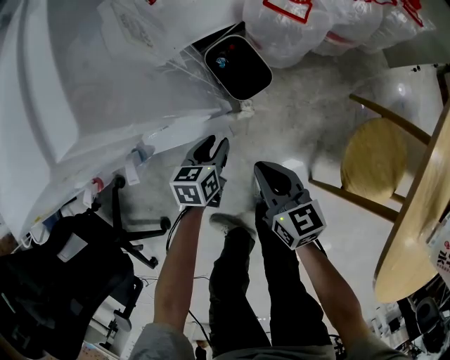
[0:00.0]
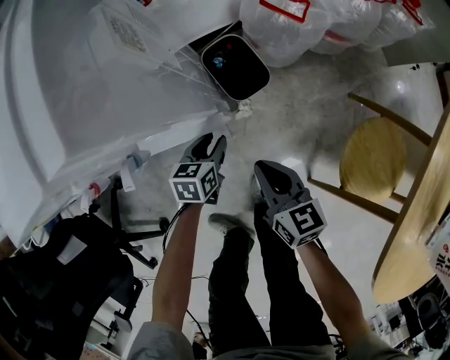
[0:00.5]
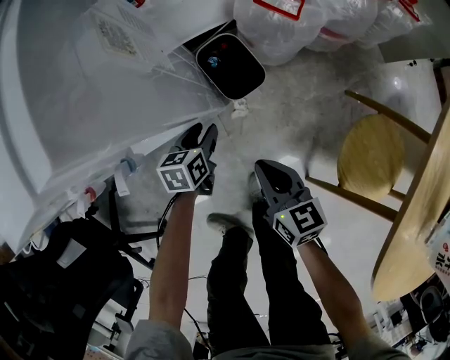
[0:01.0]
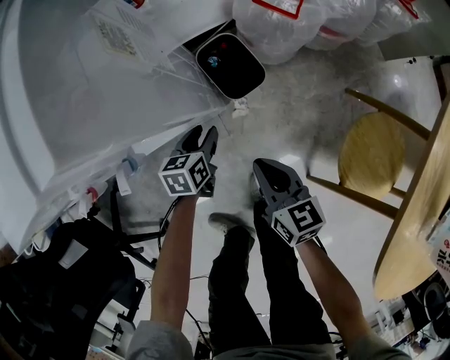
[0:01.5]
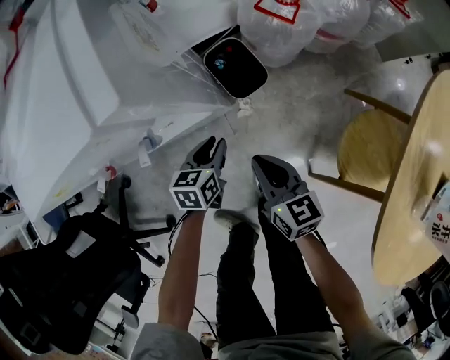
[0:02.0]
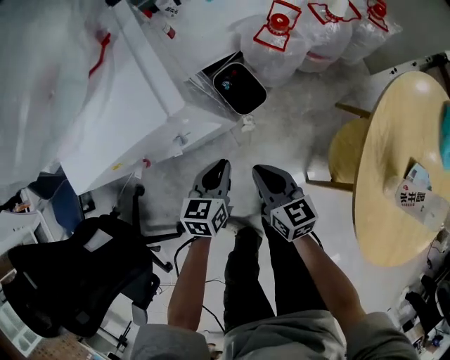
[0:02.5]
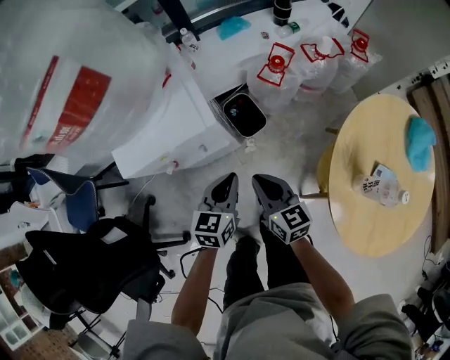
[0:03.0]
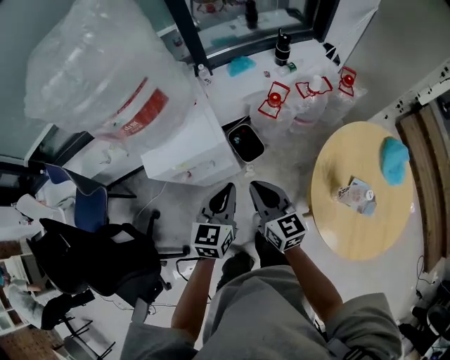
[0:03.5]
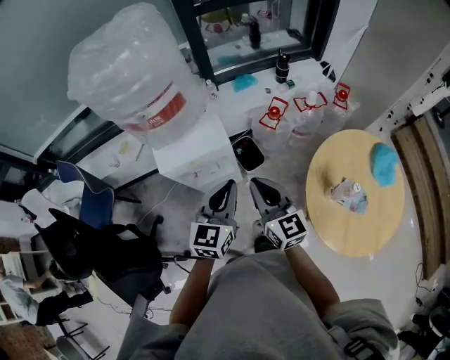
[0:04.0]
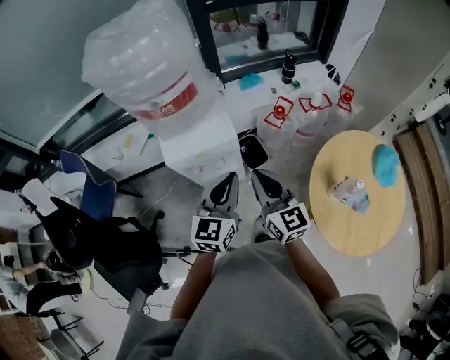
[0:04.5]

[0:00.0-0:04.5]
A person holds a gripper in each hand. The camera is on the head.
0:00.0 to 0:02.0: The left gripper heads upward, covering approximately 5 cm.
0:02.0 to 0:04.5: Both grippers travel together upward, roughly 50 cm. The right gripper rotates about 30 degrees. The left gripper tilts its fingers approximately 30 degrees upward, and closes up.

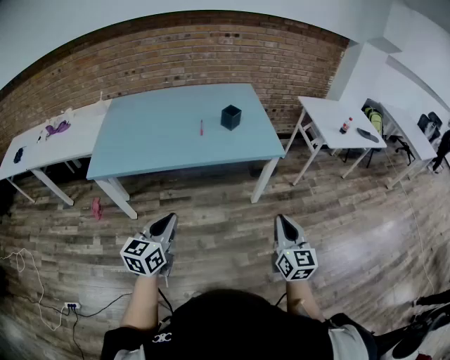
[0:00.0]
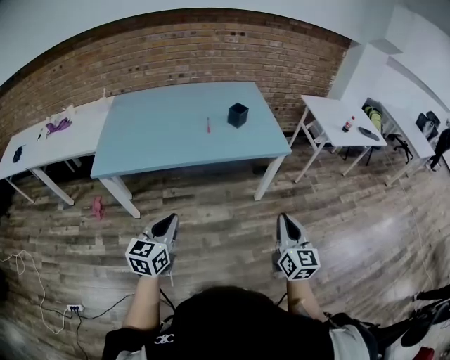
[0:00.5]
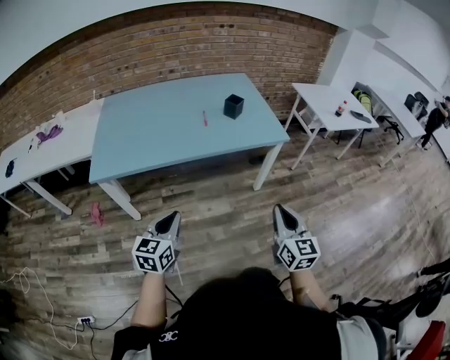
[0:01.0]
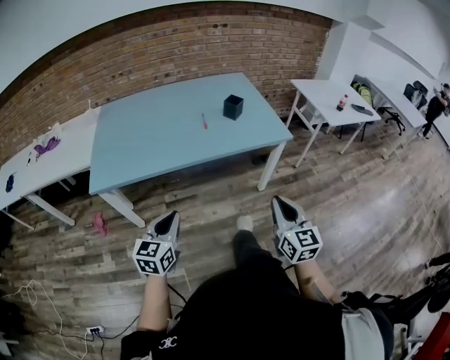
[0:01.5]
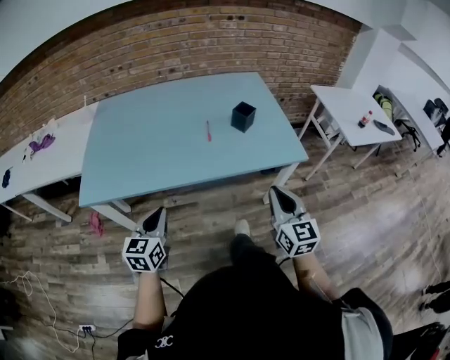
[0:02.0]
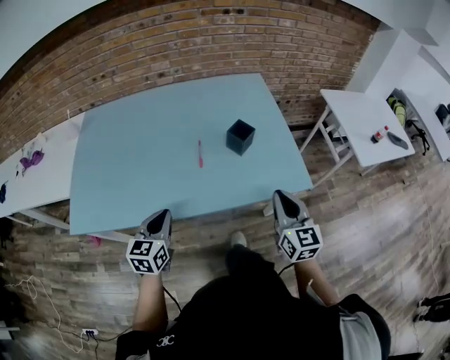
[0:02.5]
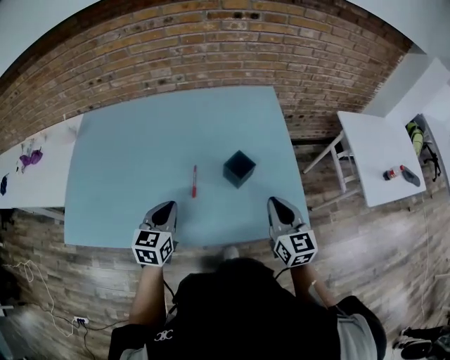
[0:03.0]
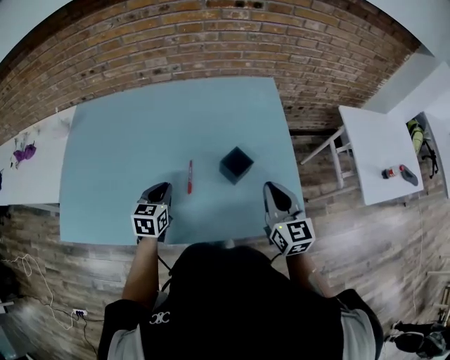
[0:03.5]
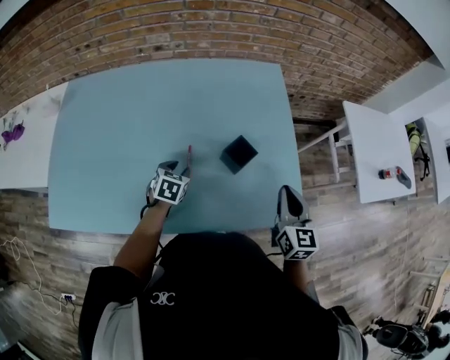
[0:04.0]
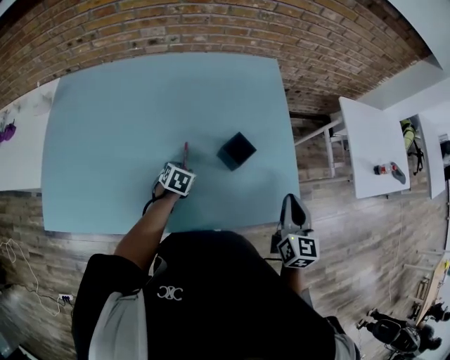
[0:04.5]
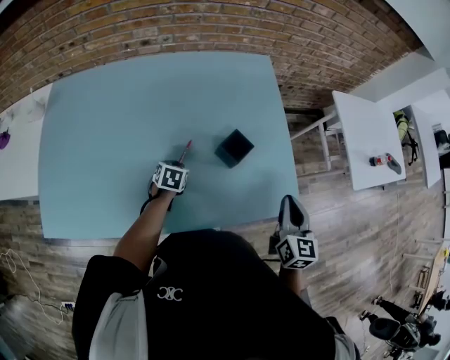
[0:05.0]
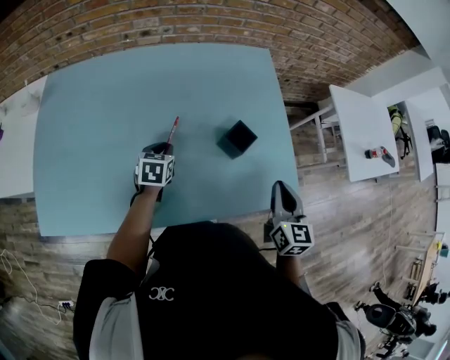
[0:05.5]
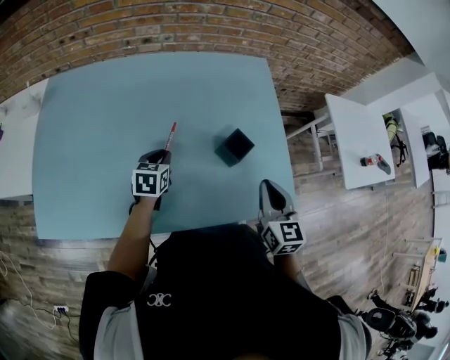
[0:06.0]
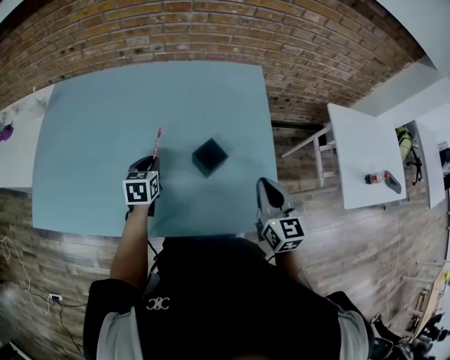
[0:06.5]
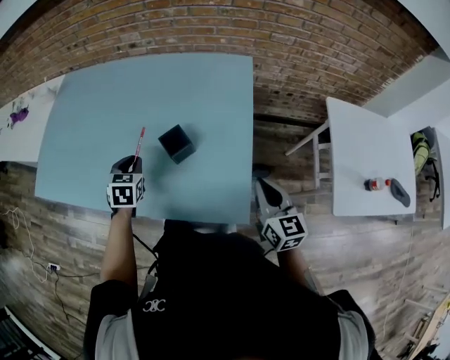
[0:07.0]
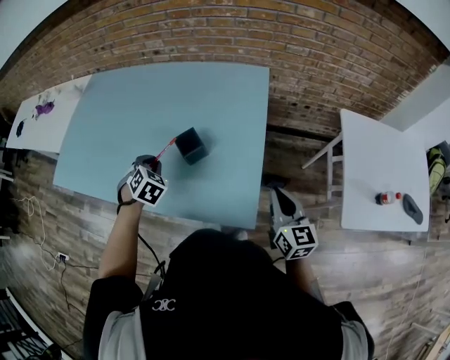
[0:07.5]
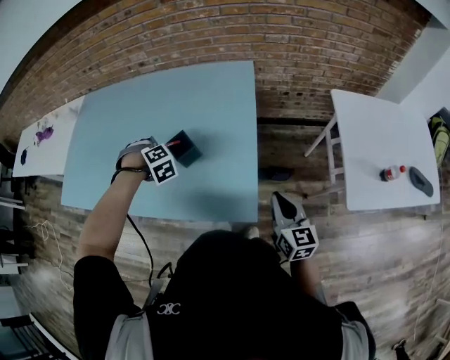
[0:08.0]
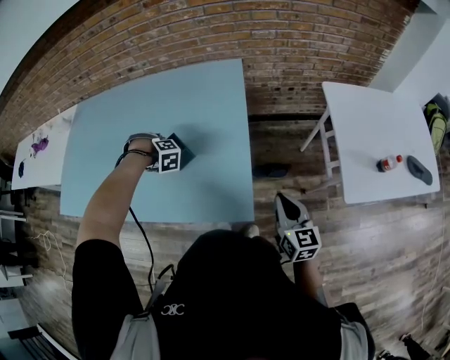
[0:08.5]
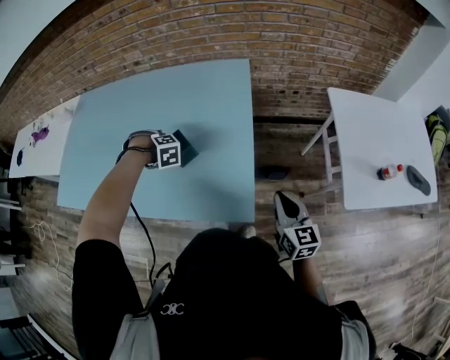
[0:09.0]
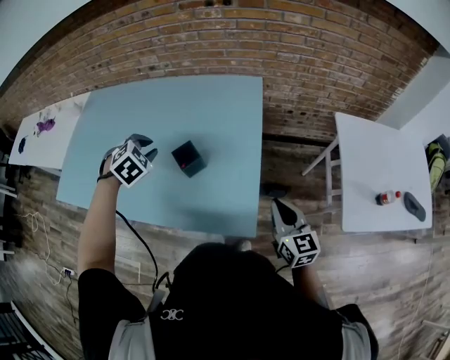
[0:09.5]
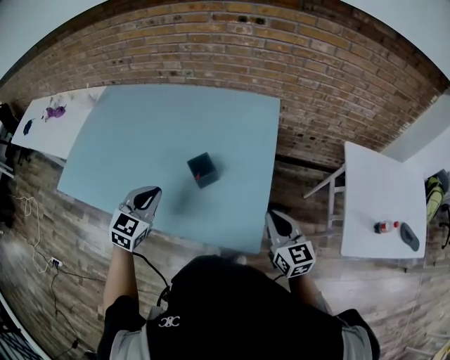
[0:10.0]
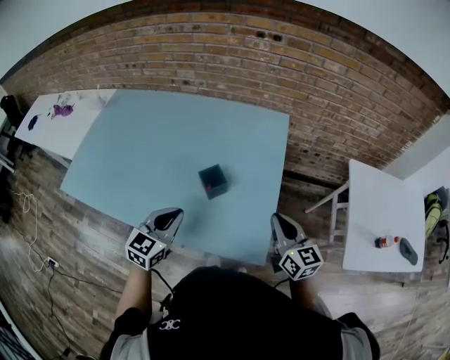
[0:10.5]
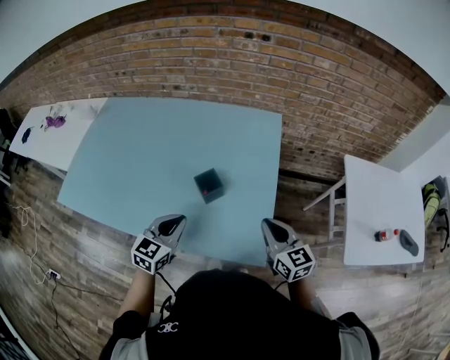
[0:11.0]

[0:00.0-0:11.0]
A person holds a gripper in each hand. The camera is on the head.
0:00.0 to 0:02.0: The left gripper shifts some 25 cm forward, to the left and downward; the right gripper goes some 25 cm forward and to the left.
0:02.0 to 0:03.5: Both grippers travel together forward, some 35 cm.
0:03.5 to 0:05.5: The left gripper shifts some 10 cm forward and downward, and opens and closes again.
0:05.5 to 0:07.5: The left gripper ends up about 15 cm from where it was, and rotates approximately 40 degrees. Meanwhile the right gripper shifts by about 20 cm, and turns by some 30 degrees.
0:07.5 to 0:09.0: The right gripper moves backward, about 5 cm; the left gripper goes roughly 5 cm to the right, rolls clockwise, seen from behind, by some 50 degrees, and opens up.
0:09.0 to 0:11.0: The left gripper changes place by about 20 cm, tips its fingers upward by approximately 40 degrees, and closes. The right gripper changes place by some 15 cm.

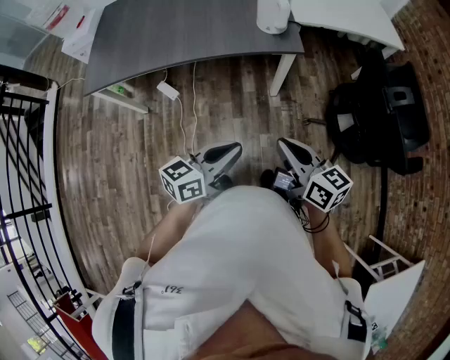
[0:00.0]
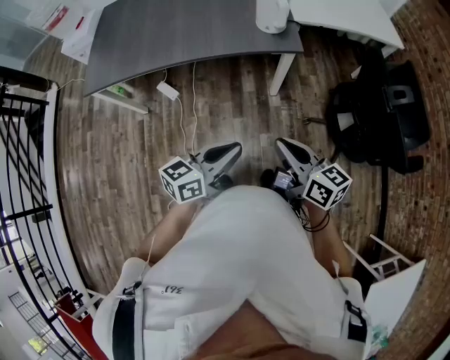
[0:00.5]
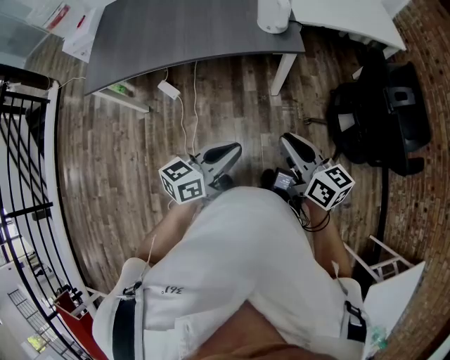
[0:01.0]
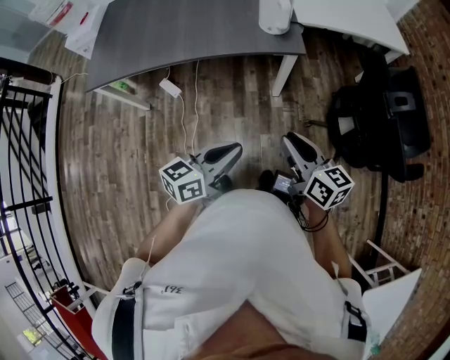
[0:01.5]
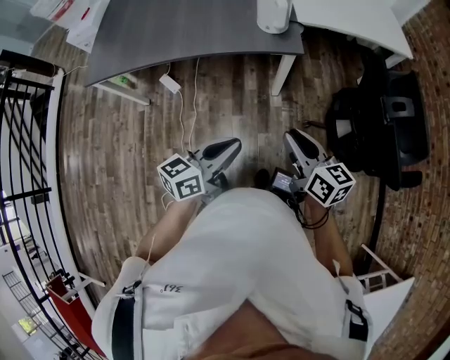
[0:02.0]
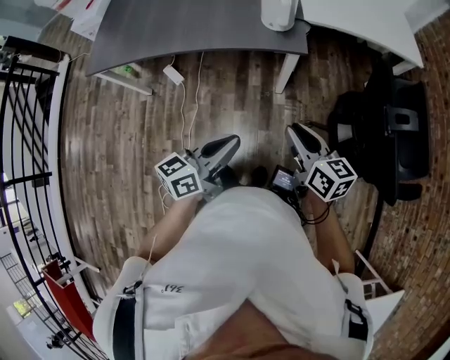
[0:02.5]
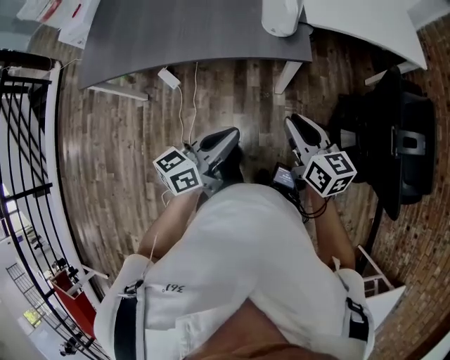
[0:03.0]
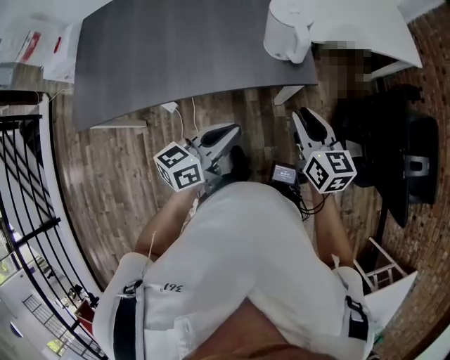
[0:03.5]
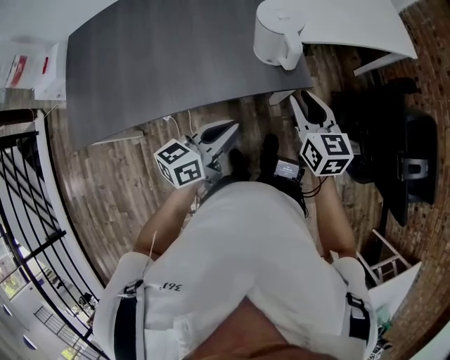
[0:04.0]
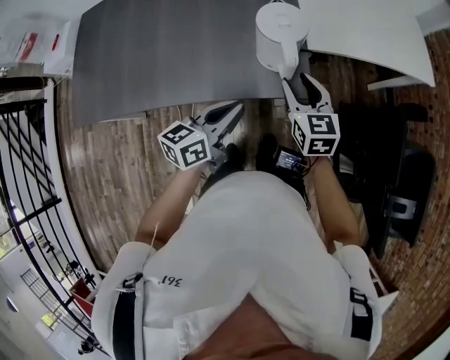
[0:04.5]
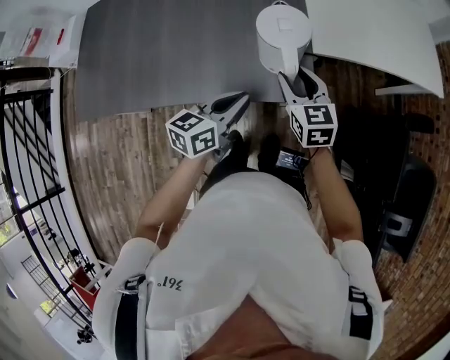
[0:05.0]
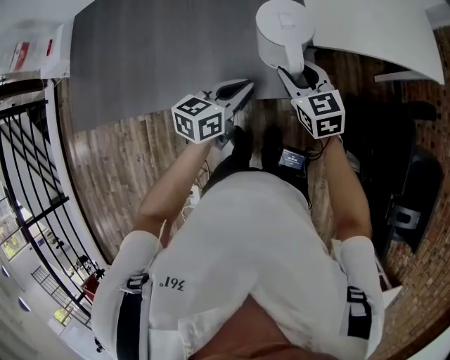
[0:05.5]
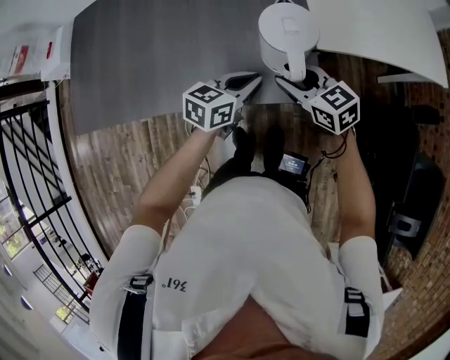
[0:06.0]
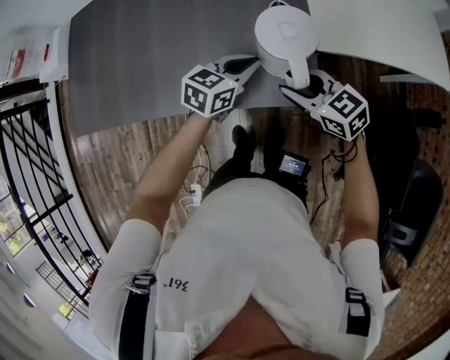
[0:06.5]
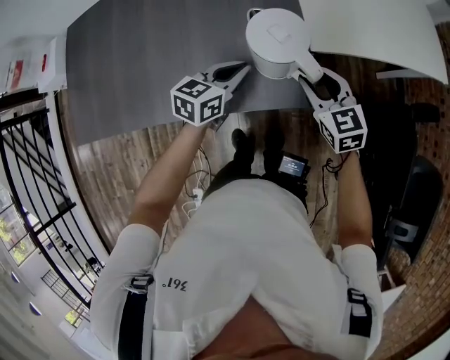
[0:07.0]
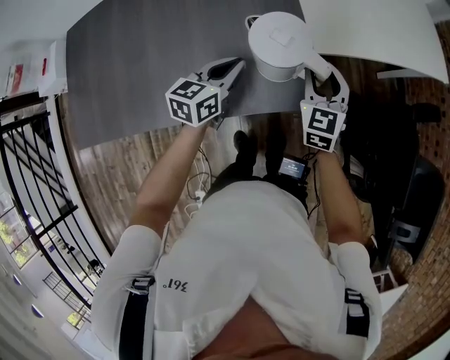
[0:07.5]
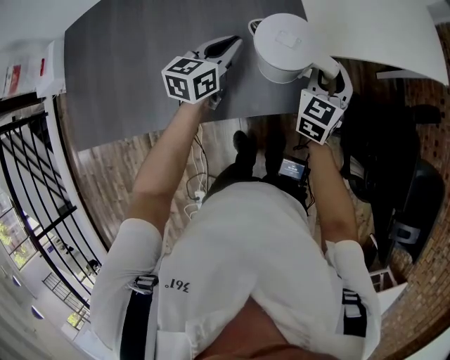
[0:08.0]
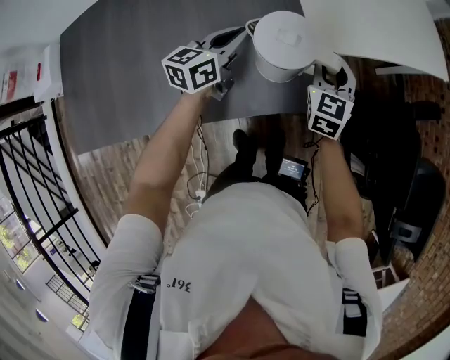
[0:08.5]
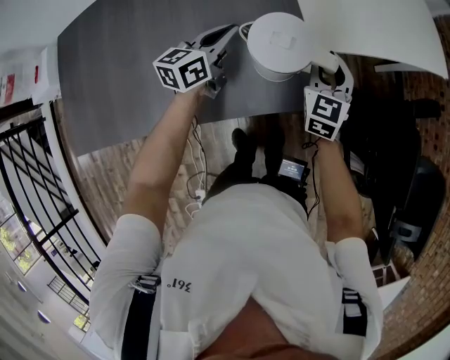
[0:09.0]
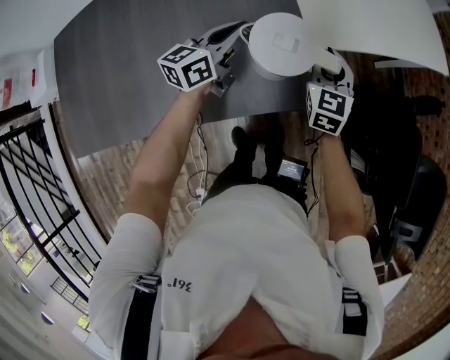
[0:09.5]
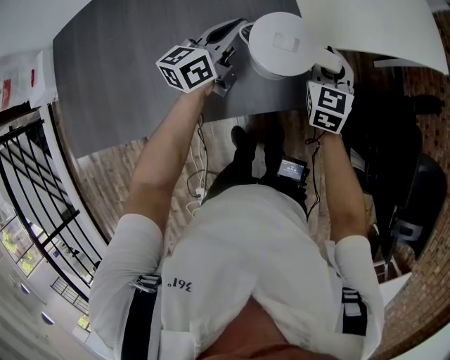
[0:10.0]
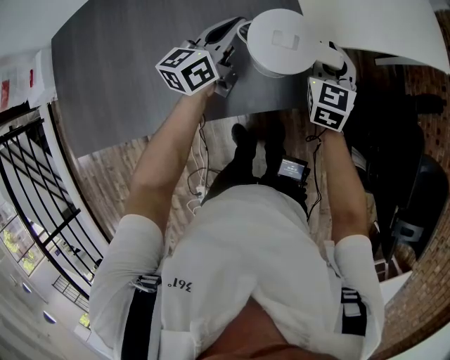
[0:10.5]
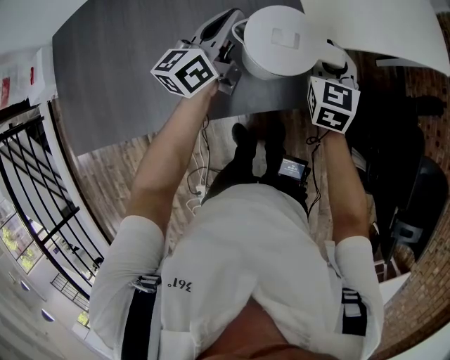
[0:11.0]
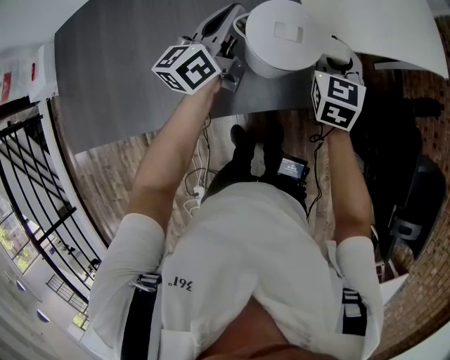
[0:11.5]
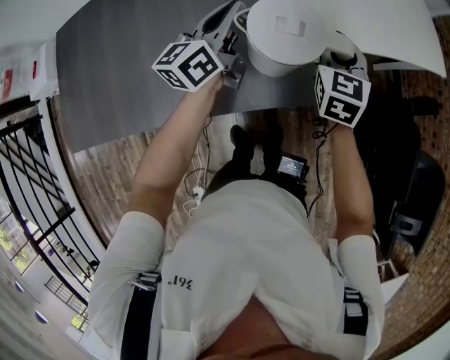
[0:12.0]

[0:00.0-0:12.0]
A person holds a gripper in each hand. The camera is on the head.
0:00.0 to 0:02.0: The right gripper is displaced to the right and forward by roughly 10 cm.
0:02.0 to 0:04.0: Both grippers move forward, some 30 cm. The right gripper turns by about 30 degrees.
0:04.0 to 0:06.0: Both grippers travel together forward and downward, about 15 cm. The right gripper changes its angle by roughly 40 degrees.
0:06.0 to 0:08.0: The left gripper shifts by approximately 15 cm, while the right gripper changes place by roughly 15 cm, and rotates roughly 70 degrees.
0:08.0 to 0:10.0: The left gripper moves roughly 5 cm.
0:10.0 to 0:12.0: Both grippers move upward, some 5 cm.
